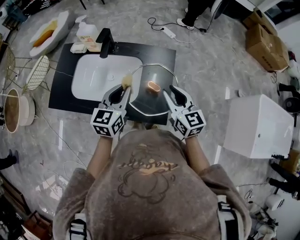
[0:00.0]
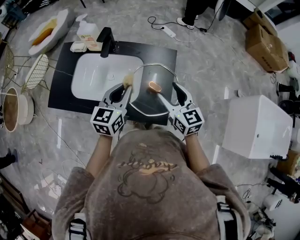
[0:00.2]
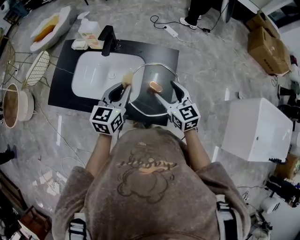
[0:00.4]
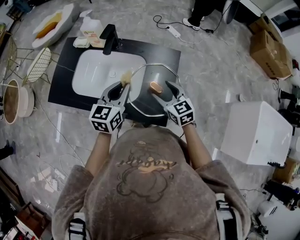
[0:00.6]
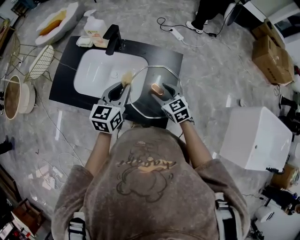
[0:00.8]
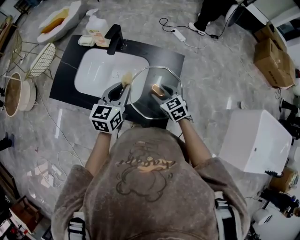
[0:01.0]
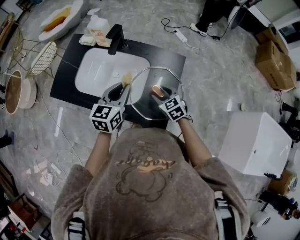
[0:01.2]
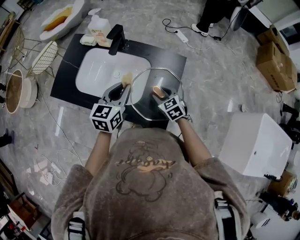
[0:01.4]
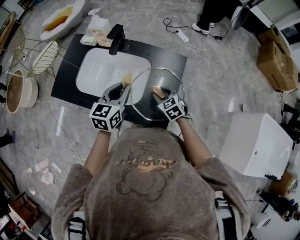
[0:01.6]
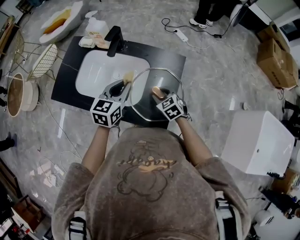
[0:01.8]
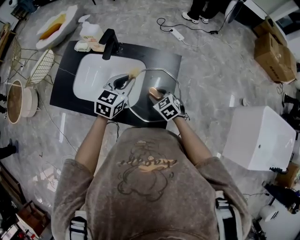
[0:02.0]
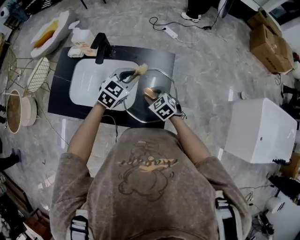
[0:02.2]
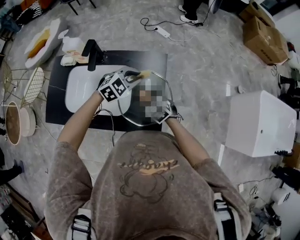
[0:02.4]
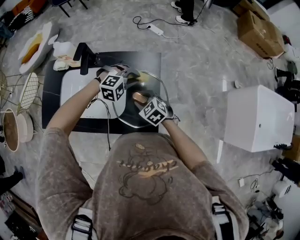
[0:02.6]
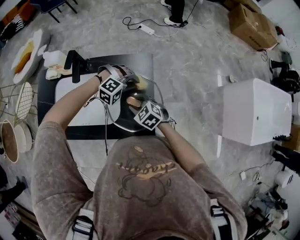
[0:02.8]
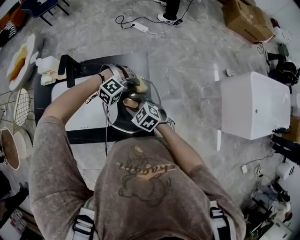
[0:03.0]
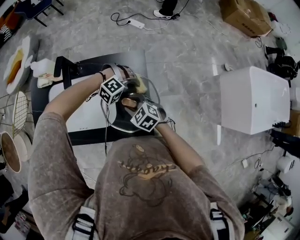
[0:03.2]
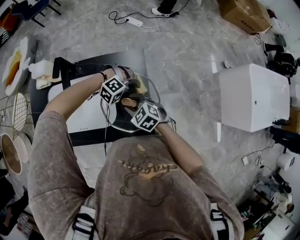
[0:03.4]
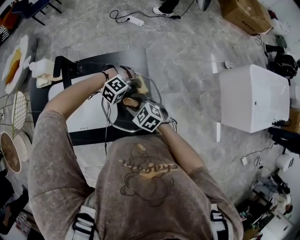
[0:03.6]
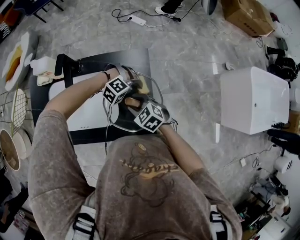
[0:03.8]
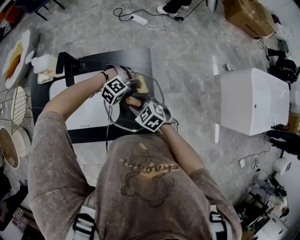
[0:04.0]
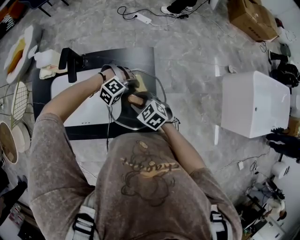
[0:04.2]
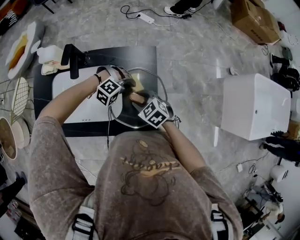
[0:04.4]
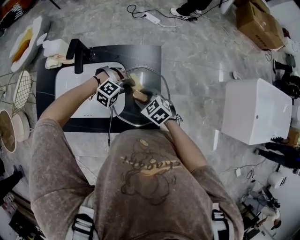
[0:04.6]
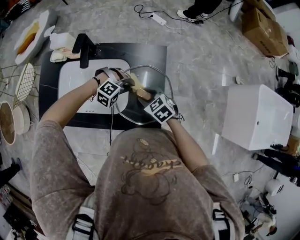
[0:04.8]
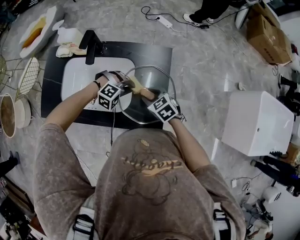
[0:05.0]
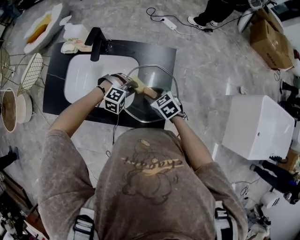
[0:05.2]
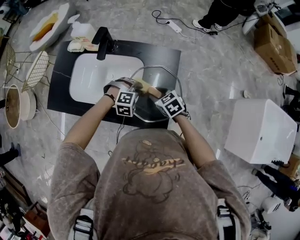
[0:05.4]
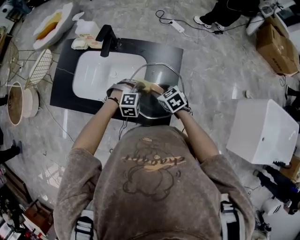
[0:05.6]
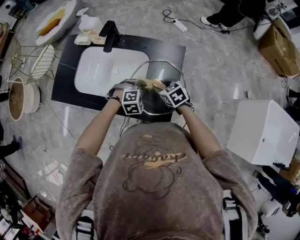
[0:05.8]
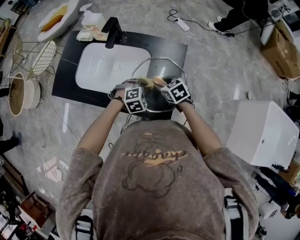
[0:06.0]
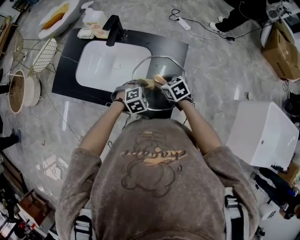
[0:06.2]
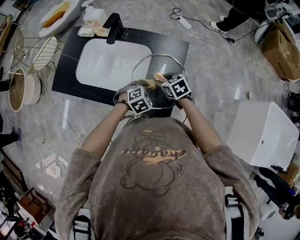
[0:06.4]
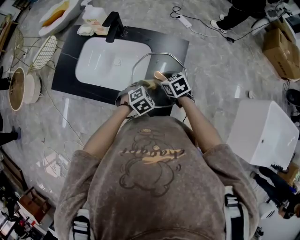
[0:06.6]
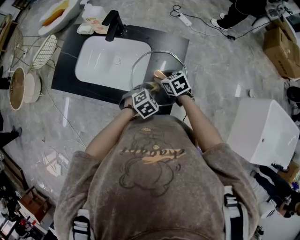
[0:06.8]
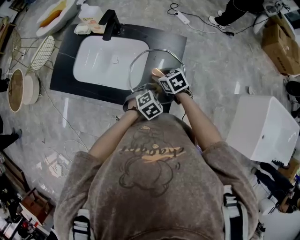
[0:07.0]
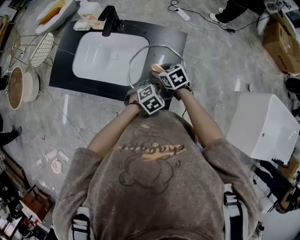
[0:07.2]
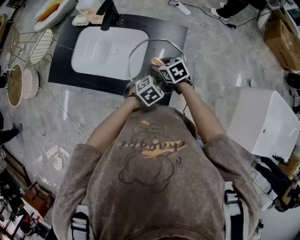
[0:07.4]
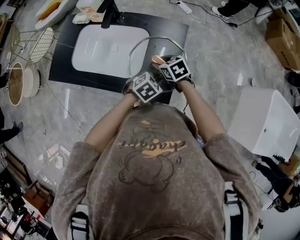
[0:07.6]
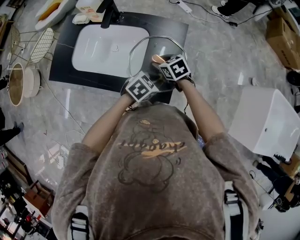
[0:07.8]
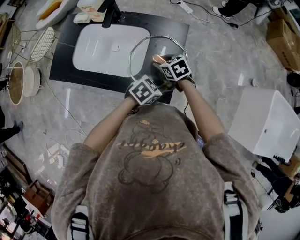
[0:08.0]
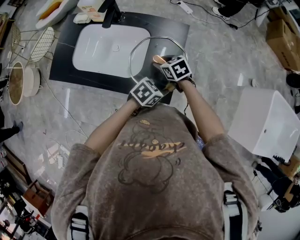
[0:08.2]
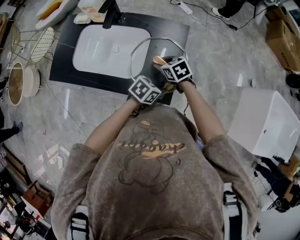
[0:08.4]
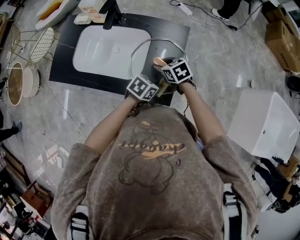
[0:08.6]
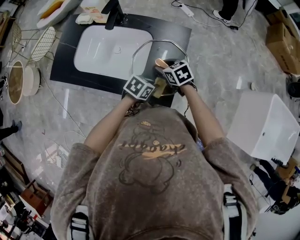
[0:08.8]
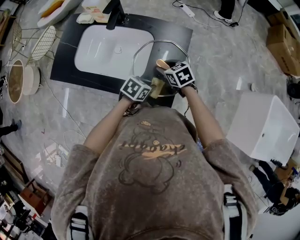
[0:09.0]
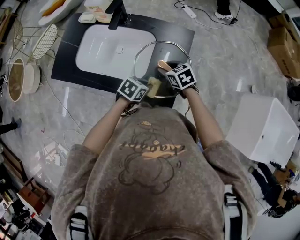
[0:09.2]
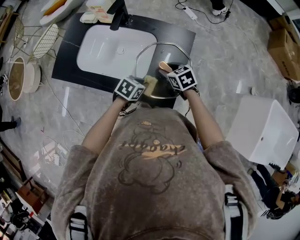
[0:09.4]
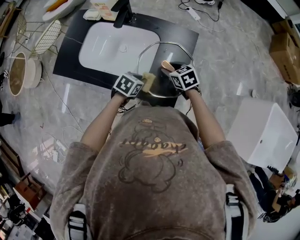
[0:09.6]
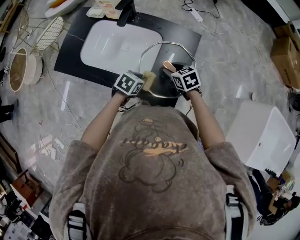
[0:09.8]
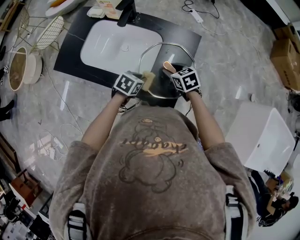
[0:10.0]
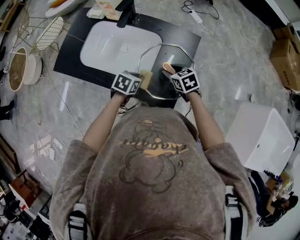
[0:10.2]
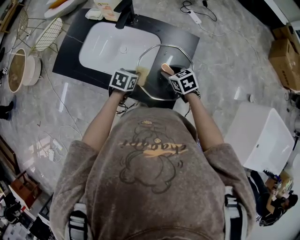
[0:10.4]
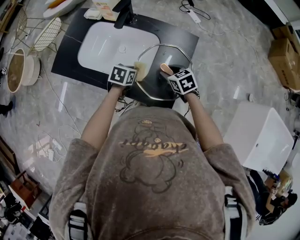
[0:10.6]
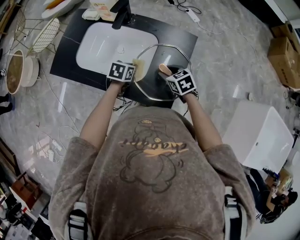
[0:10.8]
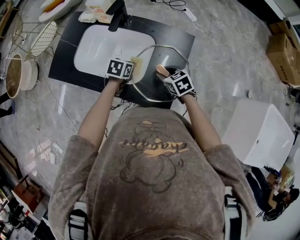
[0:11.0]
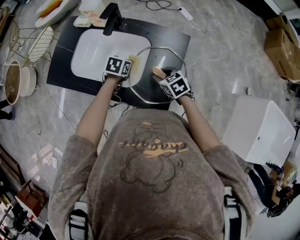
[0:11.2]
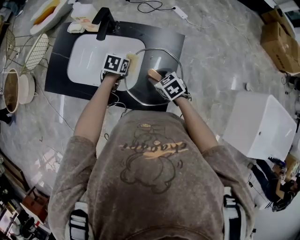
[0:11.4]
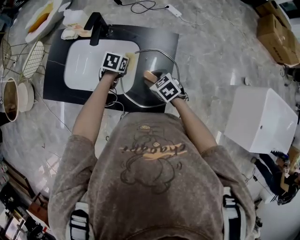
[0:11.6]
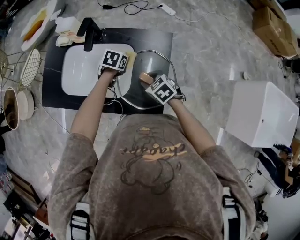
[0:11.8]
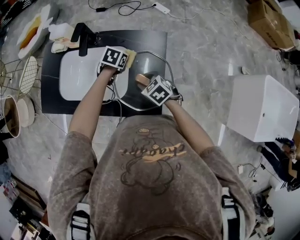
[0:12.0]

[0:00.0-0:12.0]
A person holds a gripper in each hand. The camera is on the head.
0:00.0 to 0:01.6: The right gripper shifts roughly 15 cm downward, tilts its fingers approximately 30 degrees downward, and opens, then closes once more.
0:01.6 to 0:03.0: The left gripper changes place by about 25 cm, and rotates around the line of its fingers by about 110 degrees, clockwise from behind.
0:03.0 to 0:04.4: The left gripper shifts by some 5 cm.
0:04.4 to 0:06.0: The left gripper changes place by approximately 10 cm, and twists roughly 60 degrees counterclockwise, seen from behind.
0:06.0 to 0:07.6: The left gripper is displaced to the right and backward by approximately 10 cm, and changes its angle by about 30 degrees.
0:07.6 to 0:09.0: The left gripper changes place by about 5 cm, and rotates about 30 degrees.
0:09.0 to 0:10.4: The left gripper moves about 15 cm, and rotates roughly 20 degrees.
0:10.4 to 0:12.0: The left gripper moves forward and to the right, approximately 20 cm.

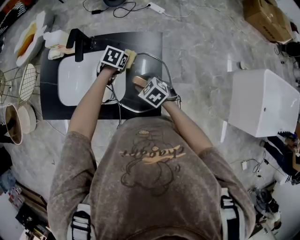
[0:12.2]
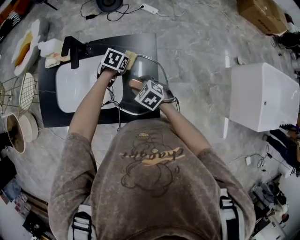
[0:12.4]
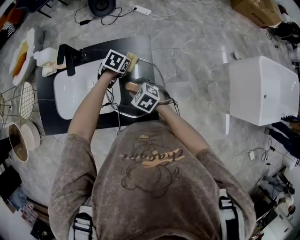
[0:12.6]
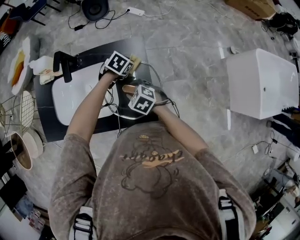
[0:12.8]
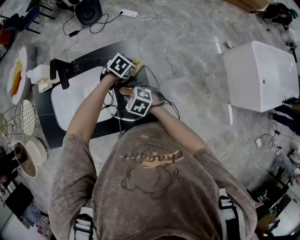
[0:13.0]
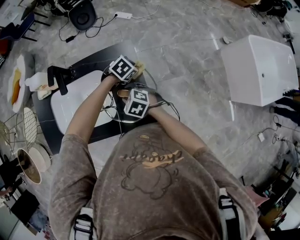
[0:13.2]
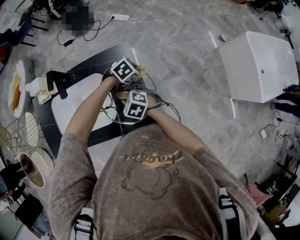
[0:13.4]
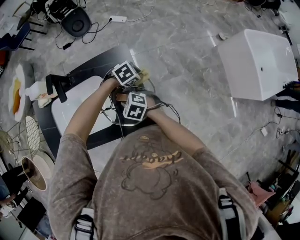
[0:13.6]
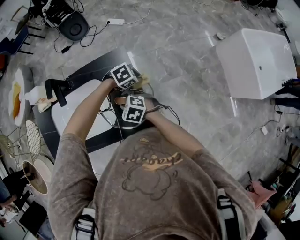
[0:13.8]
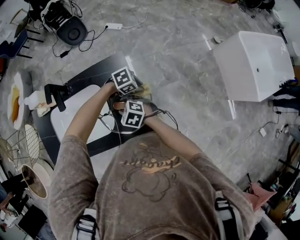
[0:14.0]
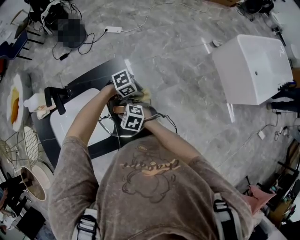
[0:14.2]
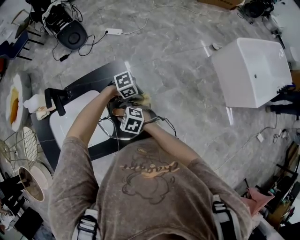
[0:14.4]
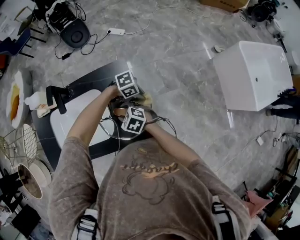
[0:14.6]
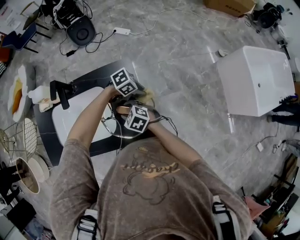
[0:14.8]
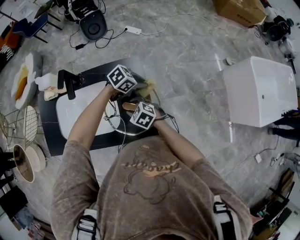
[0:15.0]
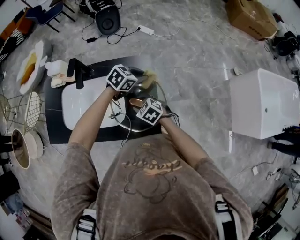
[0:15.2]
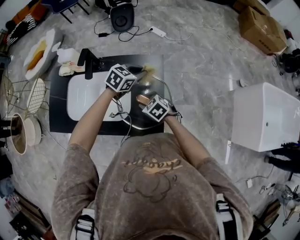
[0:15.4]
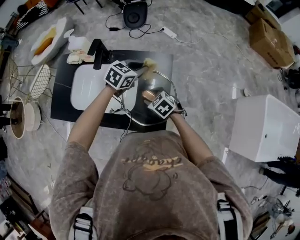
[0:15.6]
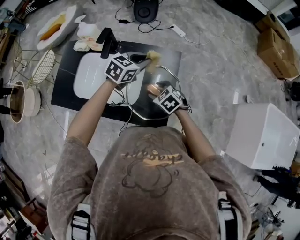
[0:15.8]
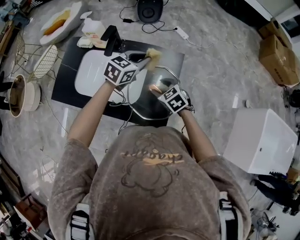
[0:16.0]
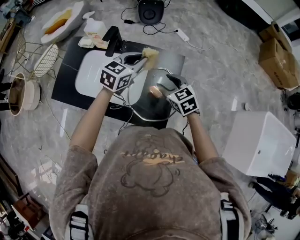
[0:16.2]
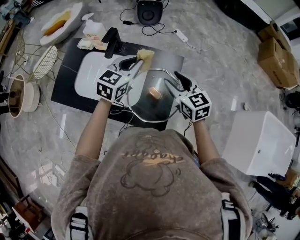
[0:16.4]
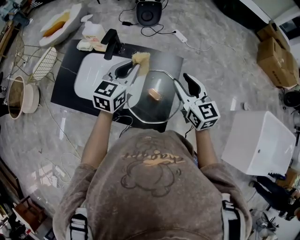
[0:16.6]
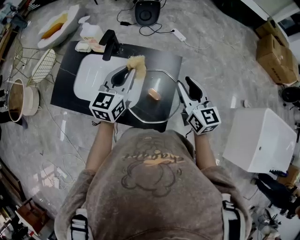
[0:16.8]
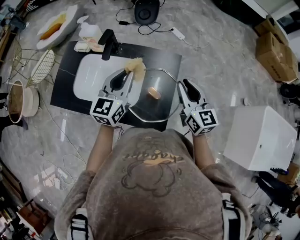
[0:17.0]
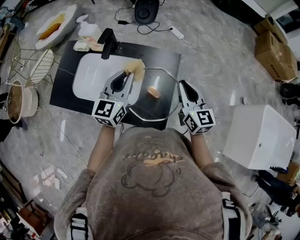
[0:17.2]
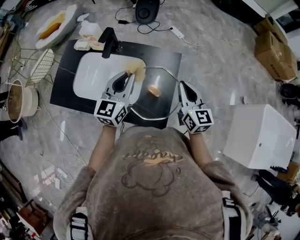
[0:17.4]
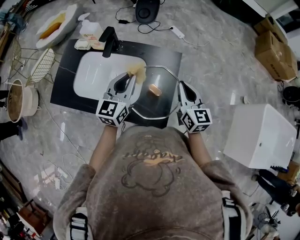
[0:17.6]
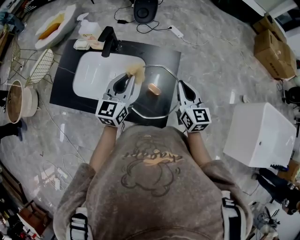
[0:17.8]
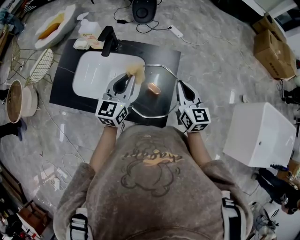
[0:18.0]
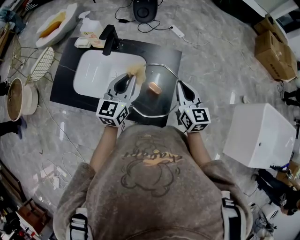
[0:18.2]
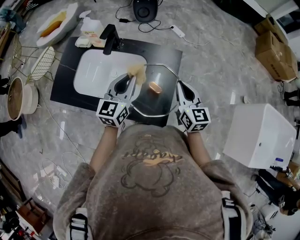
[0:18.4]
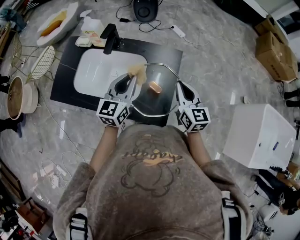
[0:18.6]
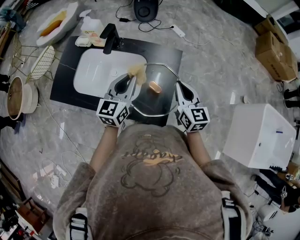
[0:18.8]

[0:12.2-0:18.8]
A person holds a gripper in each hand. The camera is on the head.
0:12.2 to 0:13.8: The left gripper shifts by roughly 20 cm, and rolls clockwise, seen from behind, by roughly 50 degrees.
0:13.8 to 0:15.4: The left gripper moves roughly 20 cm, and turns by roughly 50 degrees.
0:15.4 to 0:17.2: The right gripper is displaced upward and to the right by roughly 20 cm, points its fingers about 40 degrees further upward, and closes up; the left gripper heads to the left, upward and backward, covering about 20 cm, and tilts its fingers approximately 30 degrees upward.
0:17.2 to 0:18.8: The grippers make only small movements.

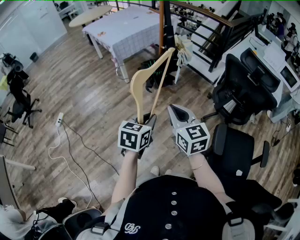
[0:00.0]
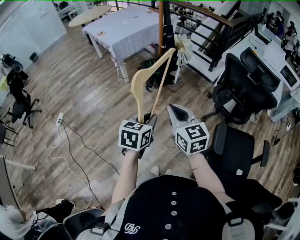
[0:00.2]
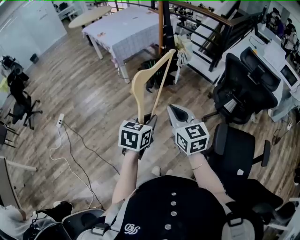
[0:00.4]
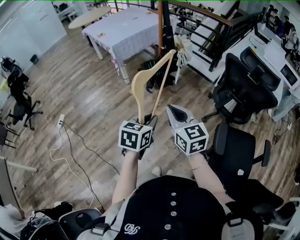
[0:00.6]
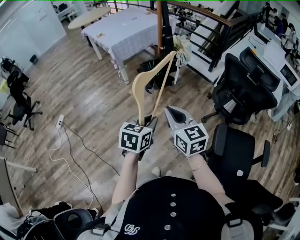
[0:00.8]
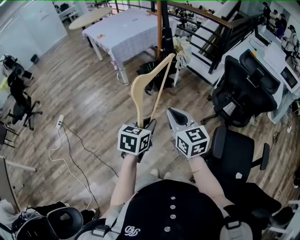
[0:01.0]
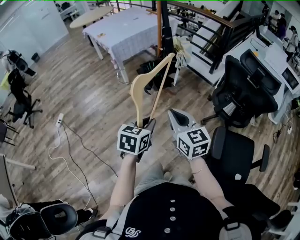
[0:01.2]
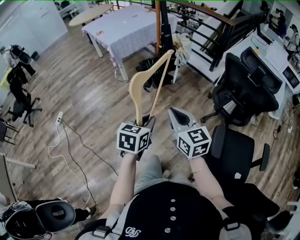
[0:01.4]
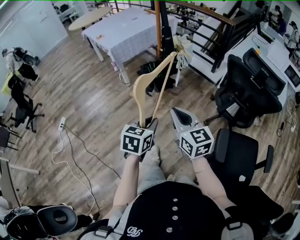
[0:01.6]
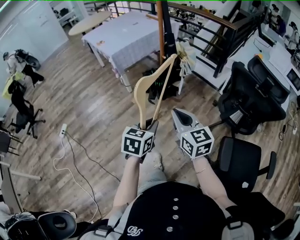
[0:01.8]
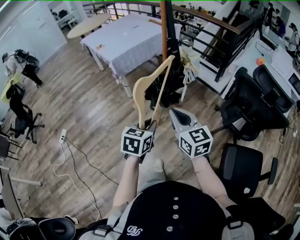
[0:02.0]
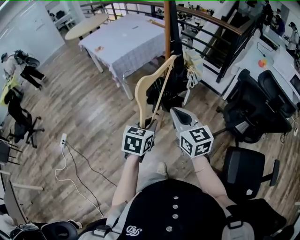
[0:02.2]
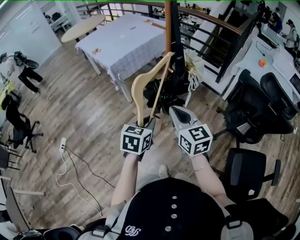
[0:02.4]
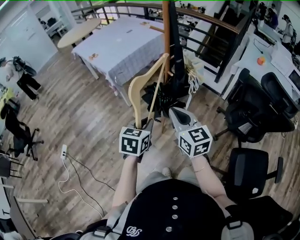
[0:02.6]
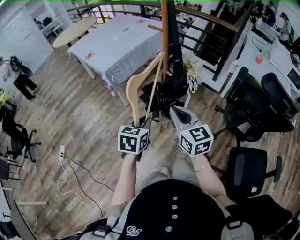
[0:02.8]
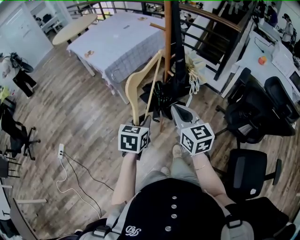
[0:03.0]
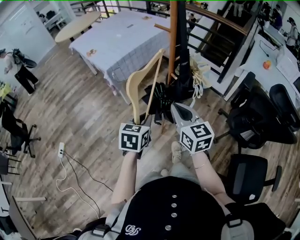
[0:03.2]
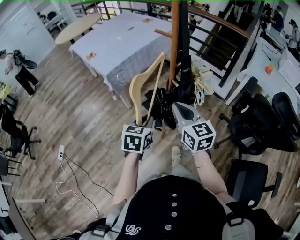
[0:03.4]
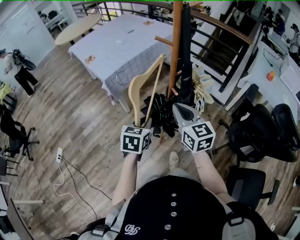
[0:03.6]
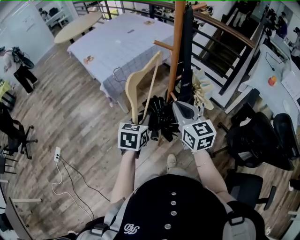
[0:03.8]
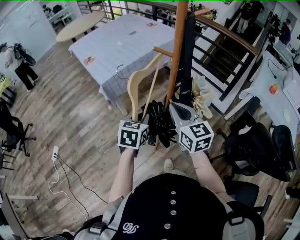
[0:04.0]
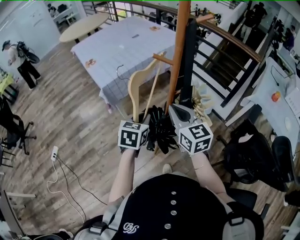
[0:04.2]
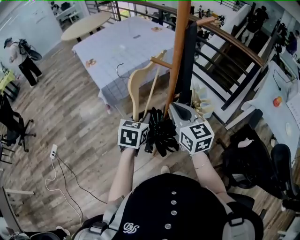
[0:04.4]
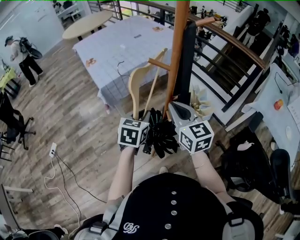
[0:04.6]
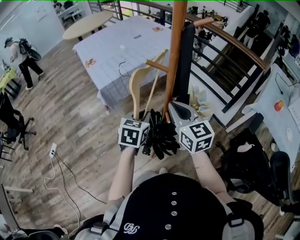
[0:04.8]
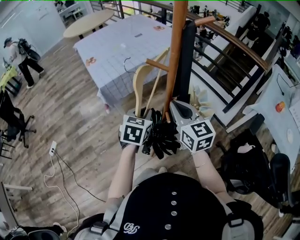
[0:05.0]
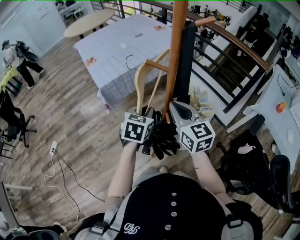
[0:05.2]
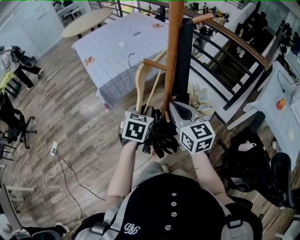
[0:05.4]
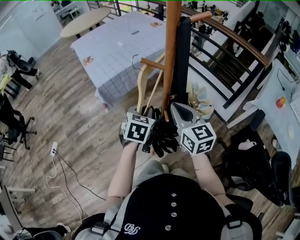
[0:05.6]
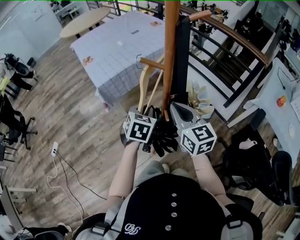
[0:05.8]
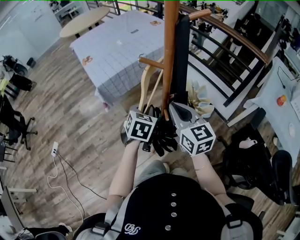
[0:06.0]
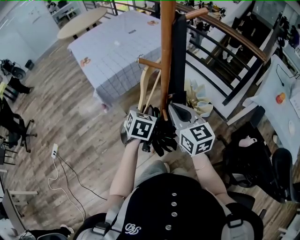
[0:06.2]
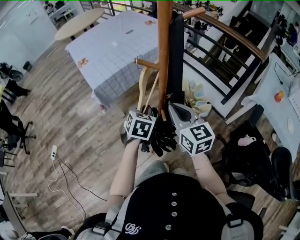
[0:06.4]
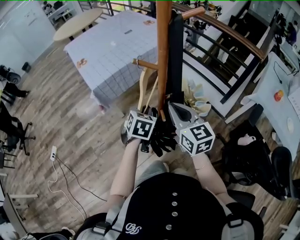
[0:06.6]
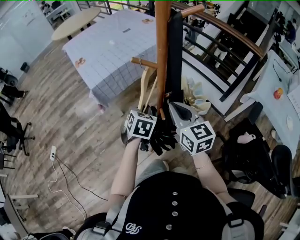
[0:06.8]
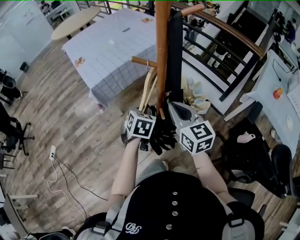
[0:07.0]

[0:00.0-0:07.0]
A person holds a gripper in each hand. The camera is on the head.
0:00.0 to 0:01.4: The grippers move only a little.
0:01.4 to 0:02.8: The left gripper is displaced forward and to the left by roughly 30 cm. The right gripper is displaced forward by about 30 cm.
0:02.8 to 0:04.2: Both grippers move forward, approximately 25 cm.
0:04.2 to 0:05.6: The left gripper heads forward, covering approximately 5 cm, while the right gripper shifts by approximately 5 cm.
0:05.6 to 0:07.0: The left gripper shifts about 5 cm downward.
